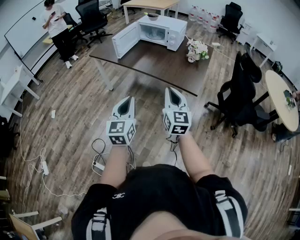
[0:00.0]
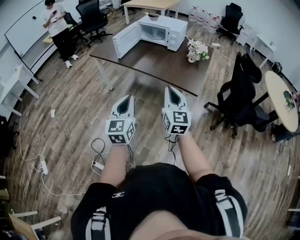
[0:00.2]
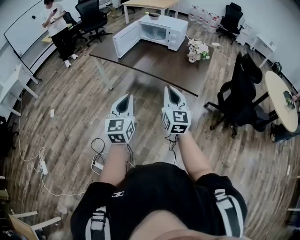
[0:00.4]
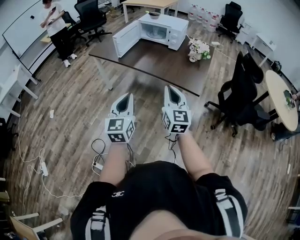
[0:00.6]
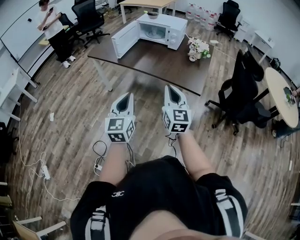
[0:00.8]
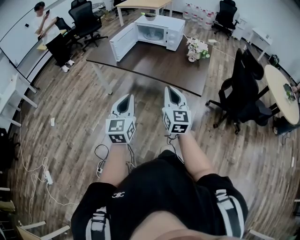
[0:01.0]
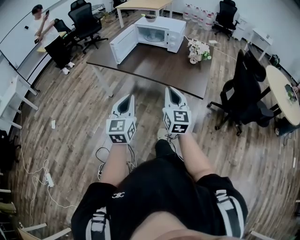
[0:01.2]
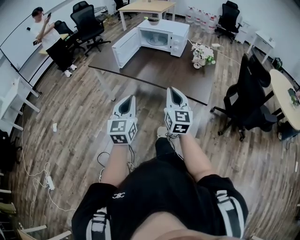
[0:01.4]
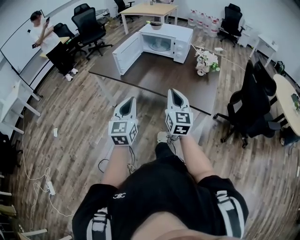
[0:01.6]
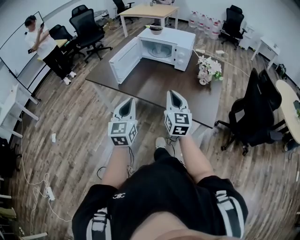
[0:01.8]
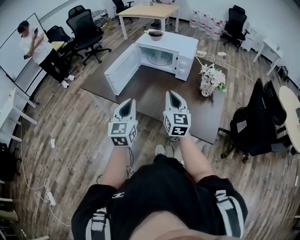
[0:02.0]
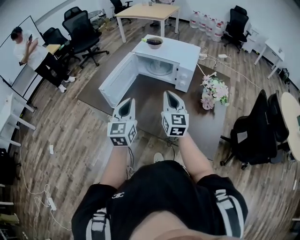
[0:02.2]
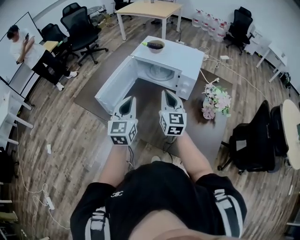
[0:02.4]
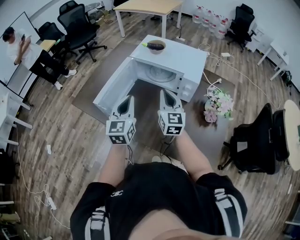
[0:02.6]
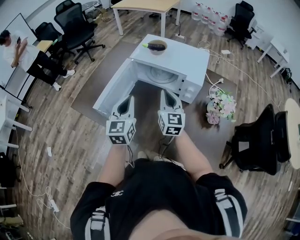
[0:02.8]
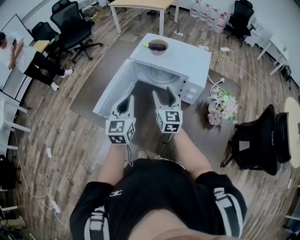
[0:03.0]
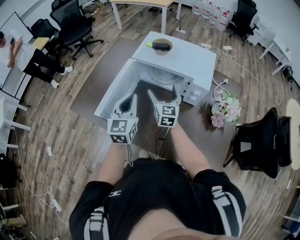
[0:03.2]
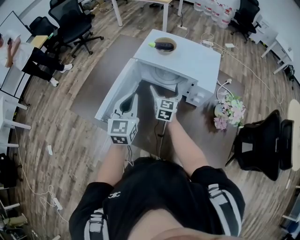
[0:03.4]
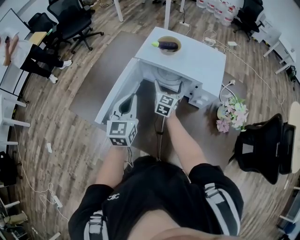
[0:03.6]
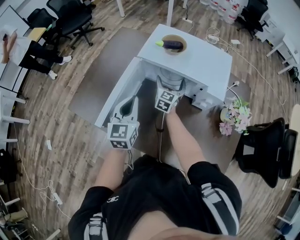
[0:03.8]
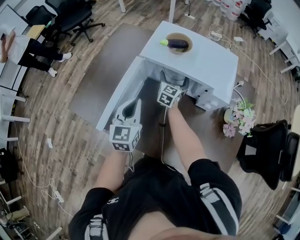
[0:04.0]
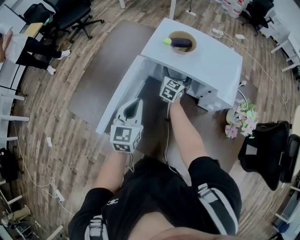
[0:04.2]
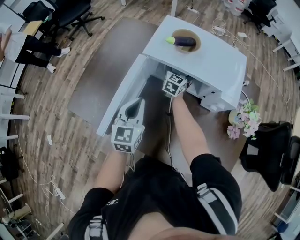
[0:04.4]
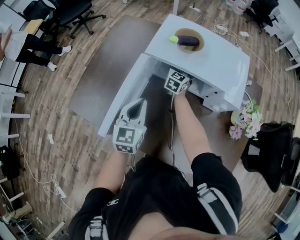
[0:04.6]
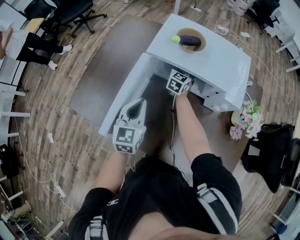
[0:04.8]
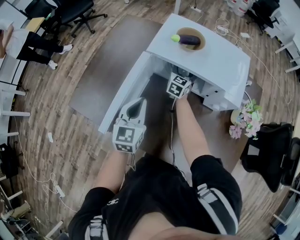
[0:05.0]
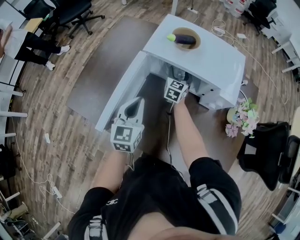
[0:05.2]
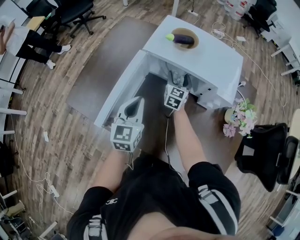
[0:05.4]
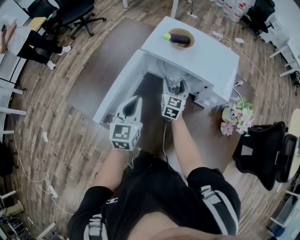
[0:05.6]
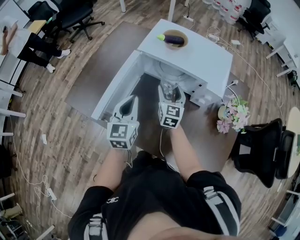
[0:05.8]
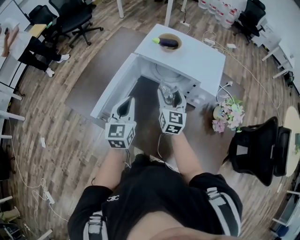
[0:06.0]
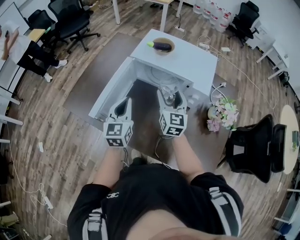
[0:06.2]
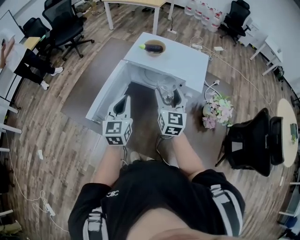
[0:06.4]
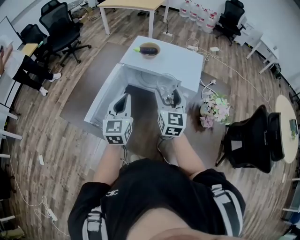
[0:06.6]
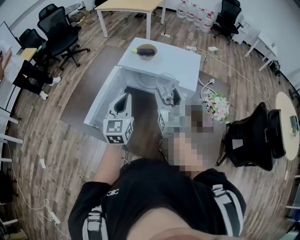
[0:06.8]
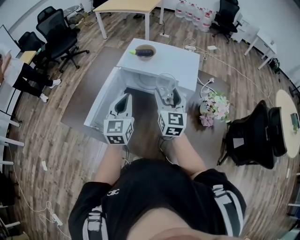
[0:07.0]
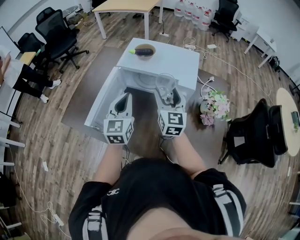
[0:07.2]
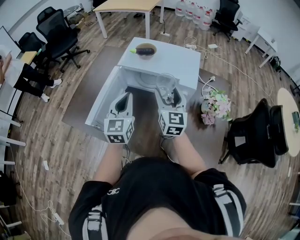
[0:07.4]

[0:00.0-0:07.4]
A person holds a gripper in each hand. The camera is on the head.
0.0 to 1.4 s: Both grippers travel together forward and to the left, about 15 cm.
1.4 to 3.0 s: Both grippers are carried forward, about 60 cm. The right gripper opens up.
3.0 to 4.4 s: The left gripper moves forward, downward and to the left, some 15 cm; the right gripper shifts some 35 cm forward and downward, changes its angle by about 30 degrees, and opens.
4.4 to 6.0 s: The left gripper is displaced backward by roughly 5 cm, while the right gripper heads backward and upward, covering roughly 25 cm, rotates roughly 20 degrees, and closes.
6.0 to 7.4 s: Both grippers travel together upward and to the right, approximately 10 cm.

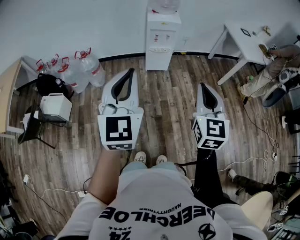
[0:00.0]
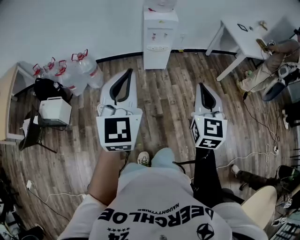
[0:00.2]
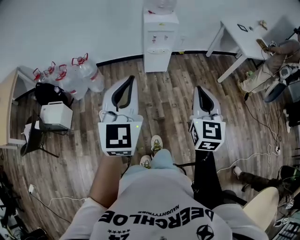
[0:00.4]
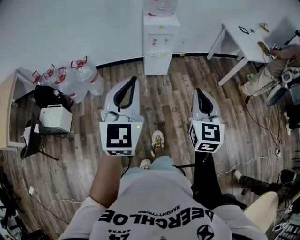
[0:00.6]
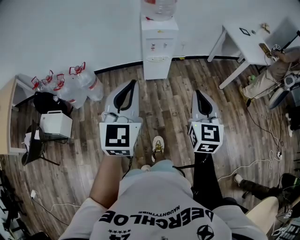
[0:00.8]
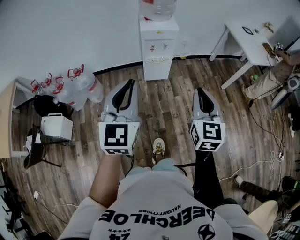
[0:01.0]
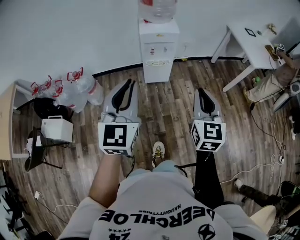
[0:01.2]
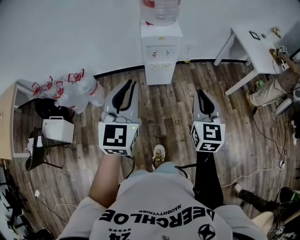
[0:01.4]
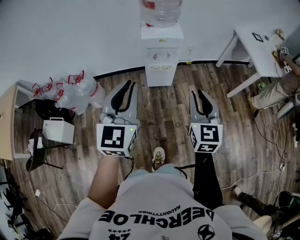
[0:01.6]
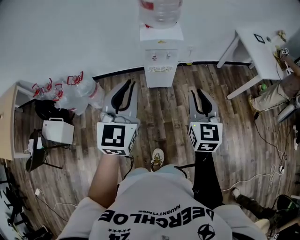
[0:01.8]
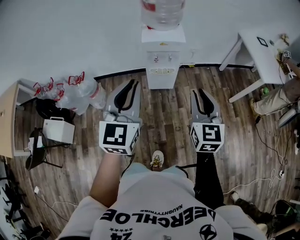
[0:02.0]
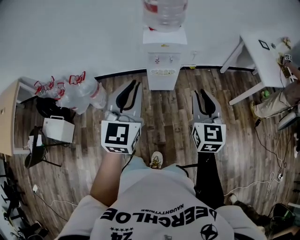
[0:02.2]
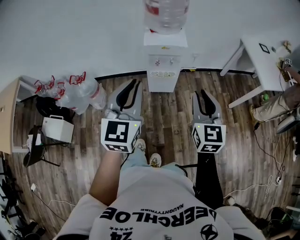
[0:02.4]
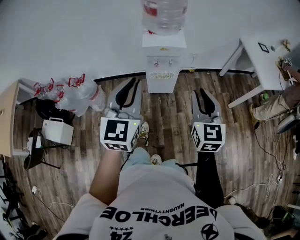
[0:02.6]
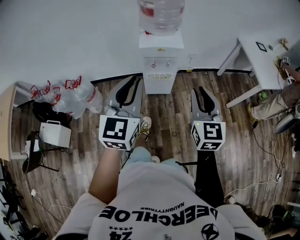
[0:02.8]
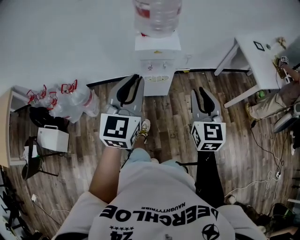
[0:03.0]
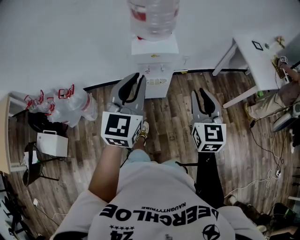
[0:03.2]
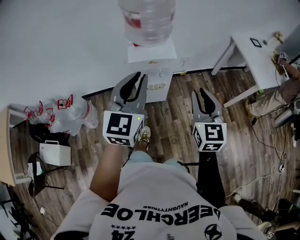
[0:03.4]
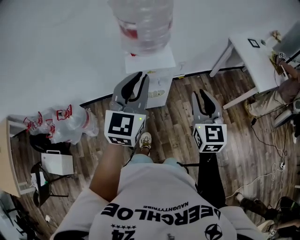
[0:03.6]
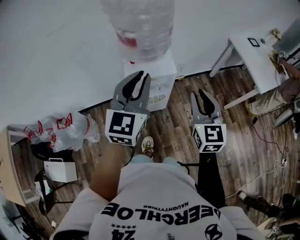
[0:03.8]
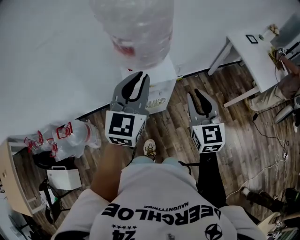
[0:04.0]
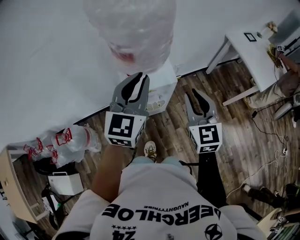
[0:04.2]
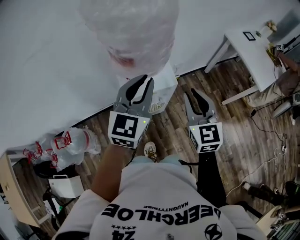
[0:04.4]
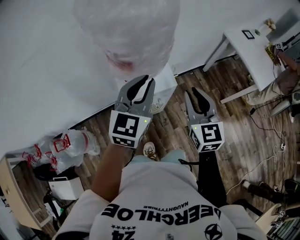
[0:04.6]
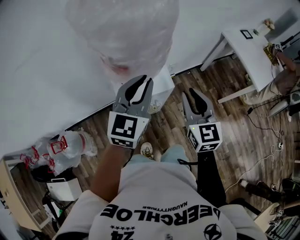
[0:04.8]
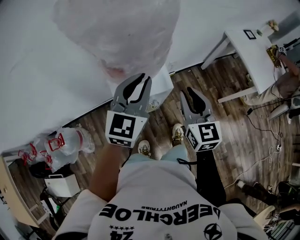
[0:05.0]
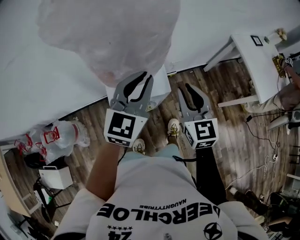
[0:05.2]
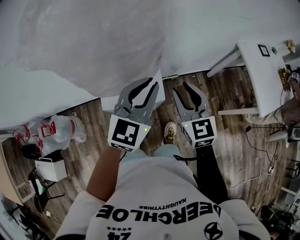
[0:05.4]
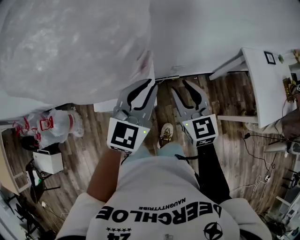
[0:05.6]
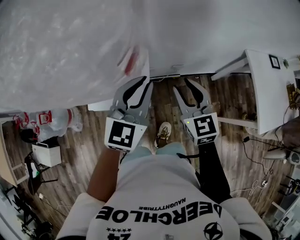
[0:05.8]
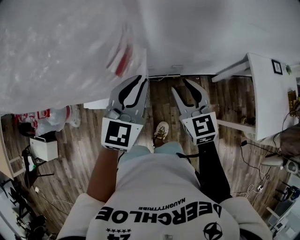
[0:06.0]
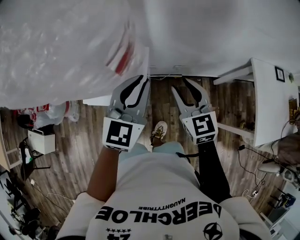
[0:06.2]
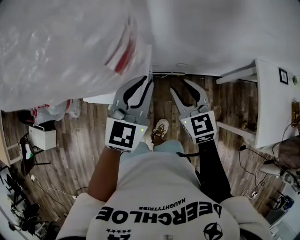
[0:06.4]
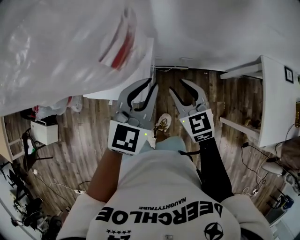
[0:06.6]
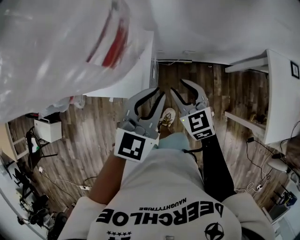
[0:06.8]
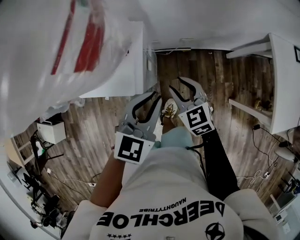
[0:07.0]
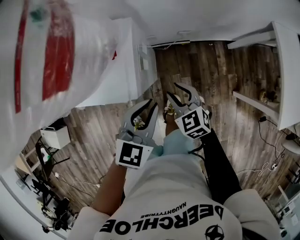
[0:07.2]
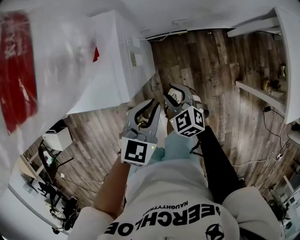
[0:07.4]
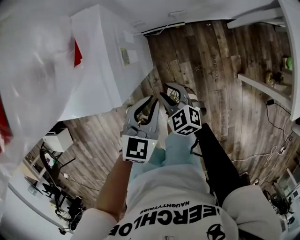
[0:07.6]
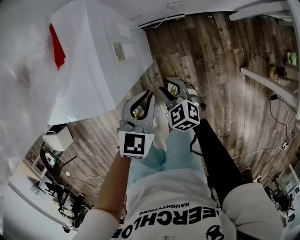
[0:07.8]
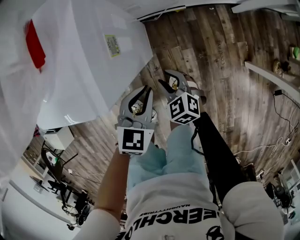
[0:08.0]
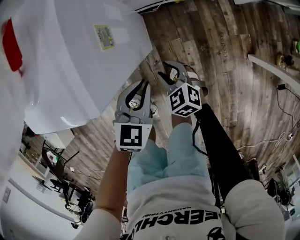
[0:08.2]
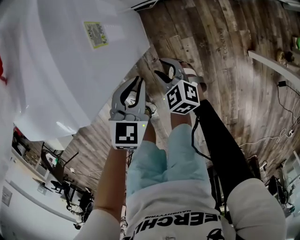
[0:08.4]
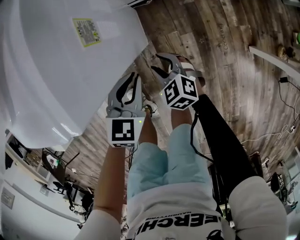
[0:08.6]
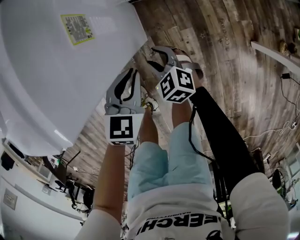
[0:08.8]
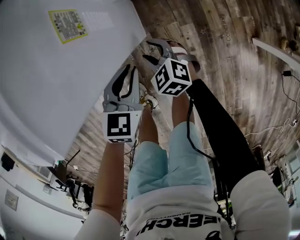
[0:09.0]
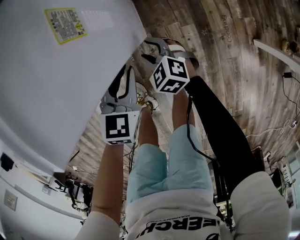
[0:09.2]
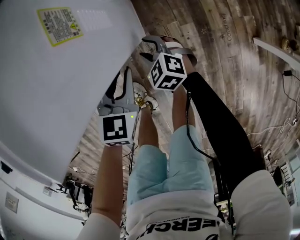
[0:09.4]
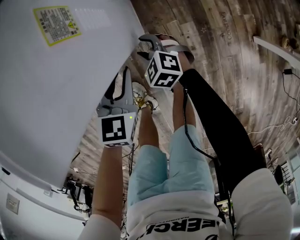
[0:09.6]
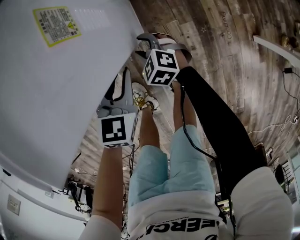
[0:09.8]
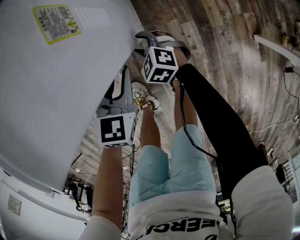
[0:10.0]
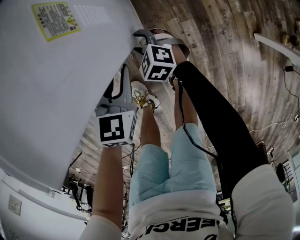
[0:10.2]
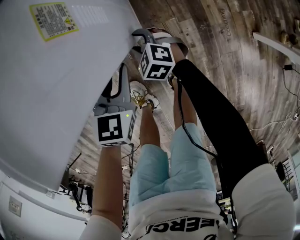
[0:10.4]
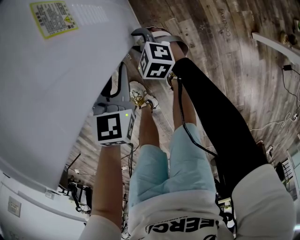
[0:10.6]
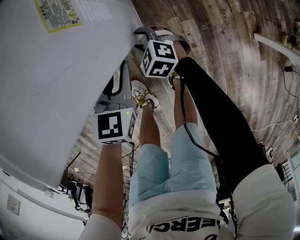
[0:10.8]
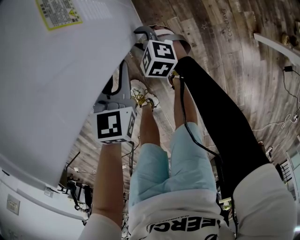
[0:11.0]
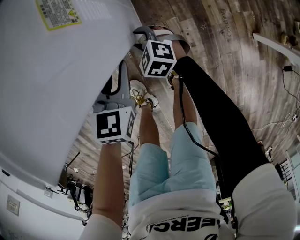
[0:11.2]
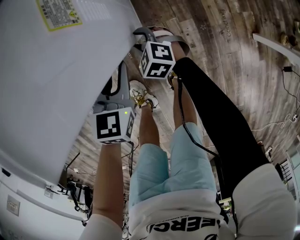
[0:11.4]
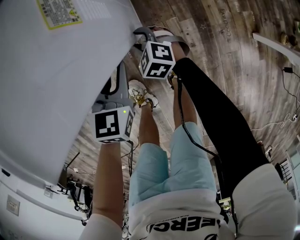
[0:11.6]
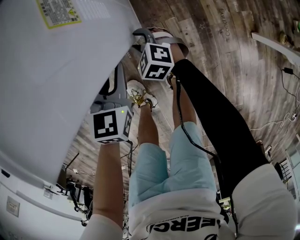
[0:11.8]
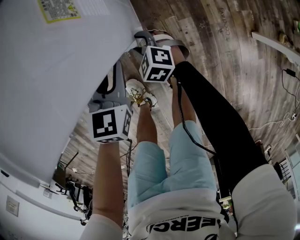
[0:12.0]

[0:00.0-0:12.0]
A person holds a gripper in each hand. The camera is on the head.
0.0 to 1.6 s: Both grippers move forward, approximately 30 cm.
1.6 to 3.0 s: The two grippers go some 10 cm forward.
3.0 to 4.4 s: Both grippers move forward, about 30 cm. The left gripper swivels approximately 20 degrees.
4.4 to 6.0 s: The grippers both shift forward, to the right and downward by approximately 25 cm. The right gripper swivels approximately 30 degrees.
6.0 to 7.6 s: The grippers both shift downward by some 30 cm. The left gripper swivels roughly 30 degrees. The right gripper rotates some 30 degrees.
7.6 to 9.0 s: The grippers both shift downward by some 20 cm.
9.0 to 10.4 s: The right gripper goes roughly 5 cm downward.
10.4 to 12.0 s: There are only small adjustments of the grippers.

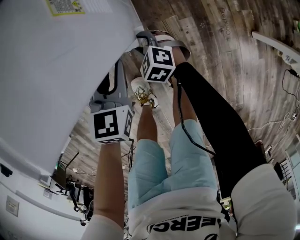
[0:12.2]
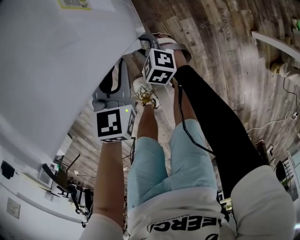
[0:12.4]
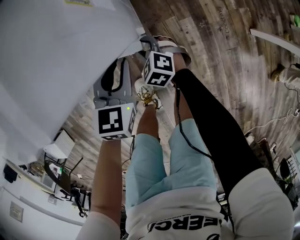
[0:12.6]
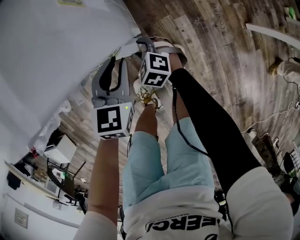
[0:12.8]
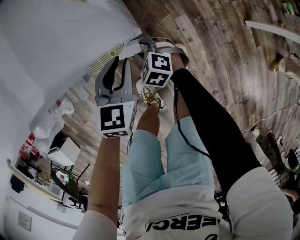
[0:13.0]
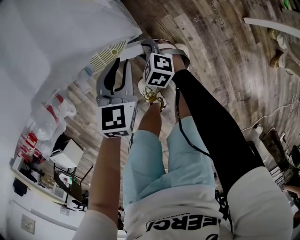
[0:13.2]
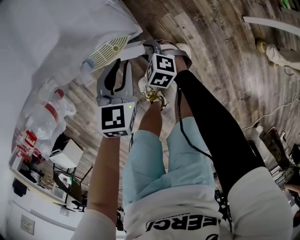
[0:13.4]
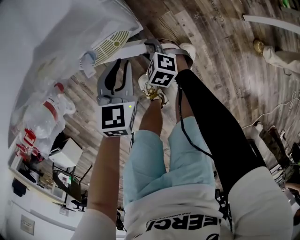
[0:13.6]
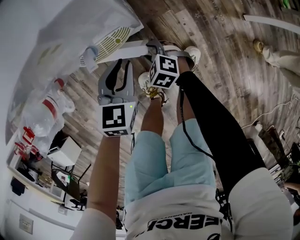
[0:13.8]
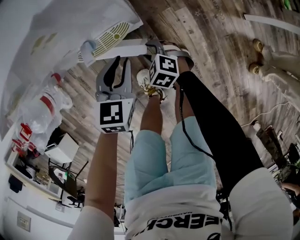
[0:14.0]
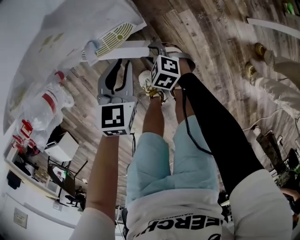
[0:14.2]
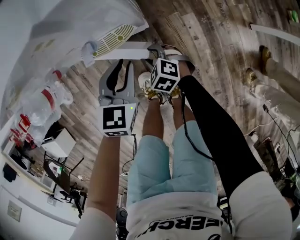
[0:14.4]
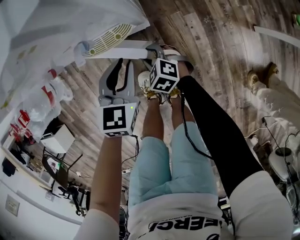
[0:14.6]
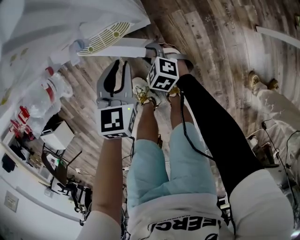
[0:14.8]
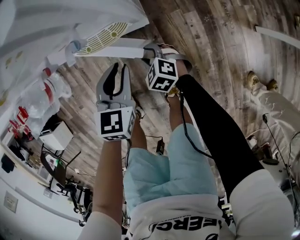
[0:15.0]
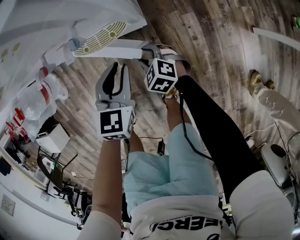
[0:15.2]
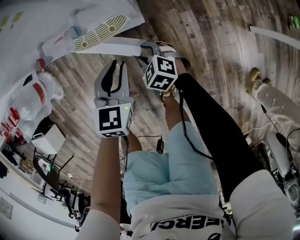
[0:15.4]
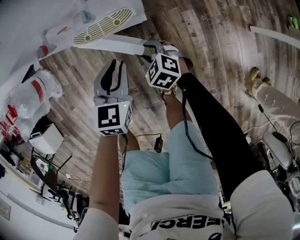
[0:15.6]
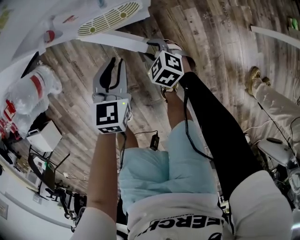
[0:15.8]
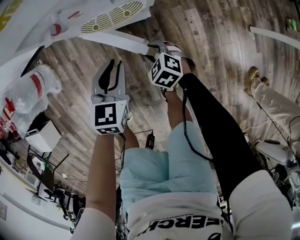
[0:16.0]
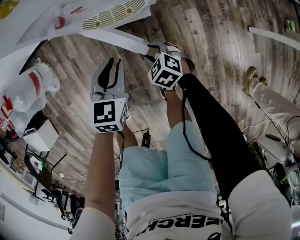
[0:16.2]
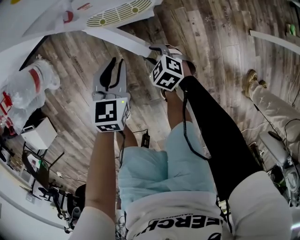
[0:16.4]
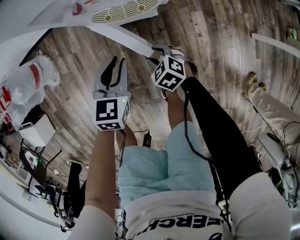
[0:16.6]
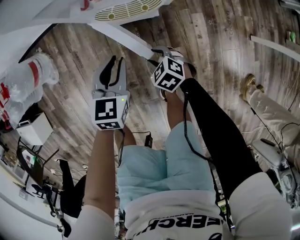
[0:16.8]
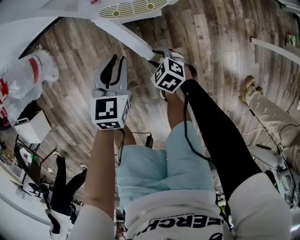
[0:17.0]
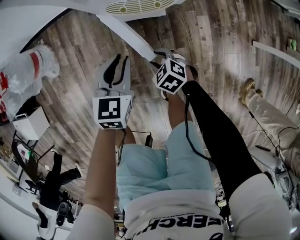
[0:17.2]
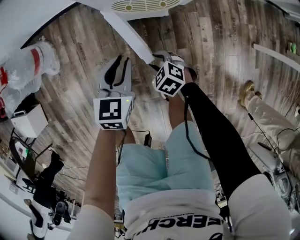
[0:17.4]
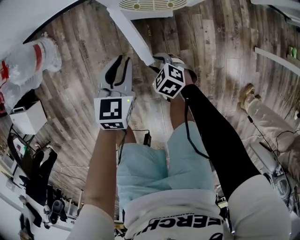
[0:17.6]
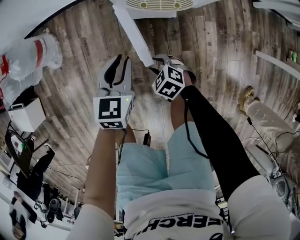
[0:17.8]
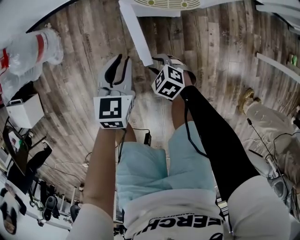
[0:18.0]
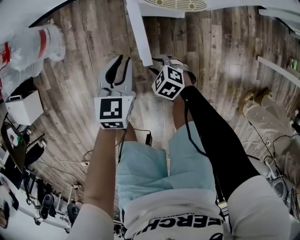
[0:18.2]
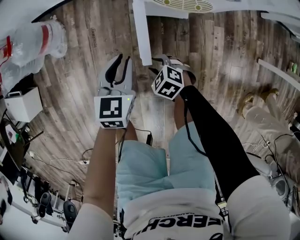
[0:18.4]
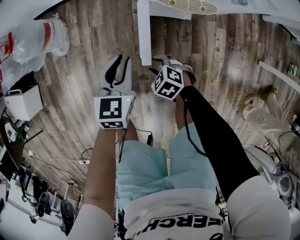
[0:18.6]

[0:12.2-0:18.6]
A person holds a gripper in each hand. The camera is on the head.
12.2 to 13.8 s: Both grippers move backward, roughly 10 cm.
13.8 to 15.4 s: There are only small adjustments of the grippers.
15.4 to 17.0 s: The right gripper moves to the left and backward, roughly 10 cm, while the left gripper is displaced to the left by roughly 10 cm.
17.0 to 18.6 s: The grippers both shift to the left by some 15 cm.
